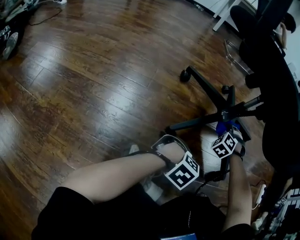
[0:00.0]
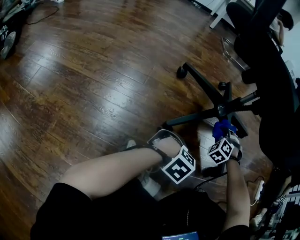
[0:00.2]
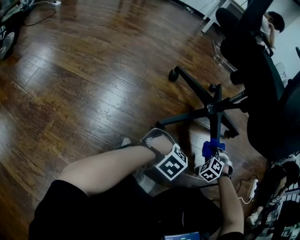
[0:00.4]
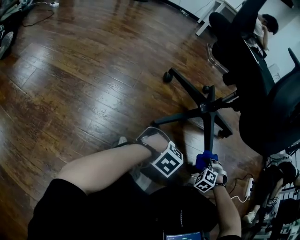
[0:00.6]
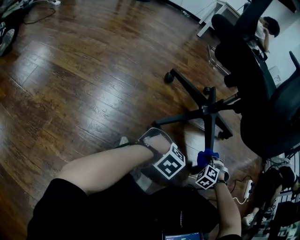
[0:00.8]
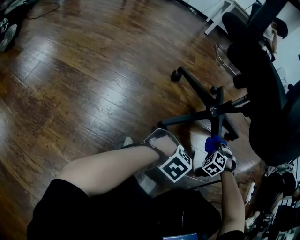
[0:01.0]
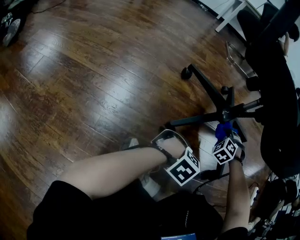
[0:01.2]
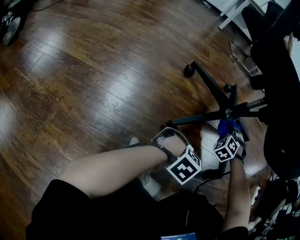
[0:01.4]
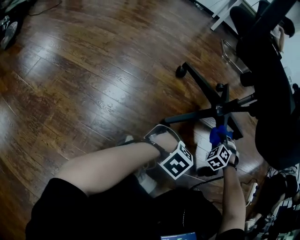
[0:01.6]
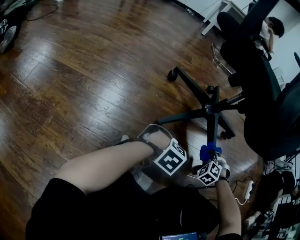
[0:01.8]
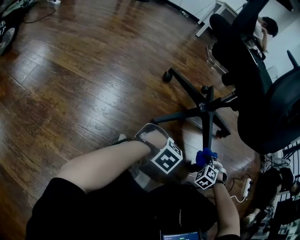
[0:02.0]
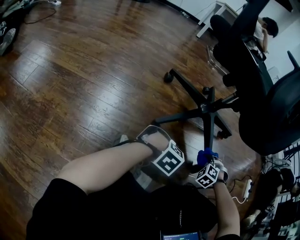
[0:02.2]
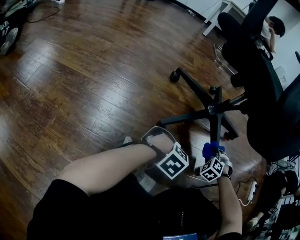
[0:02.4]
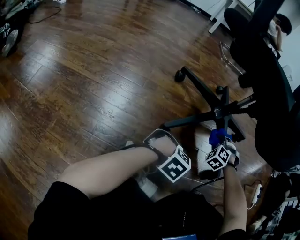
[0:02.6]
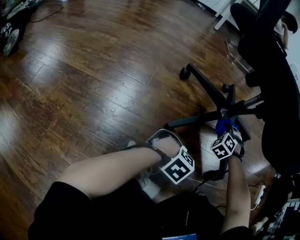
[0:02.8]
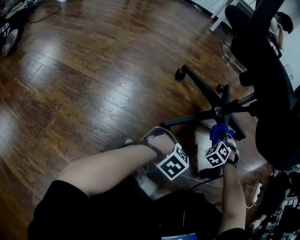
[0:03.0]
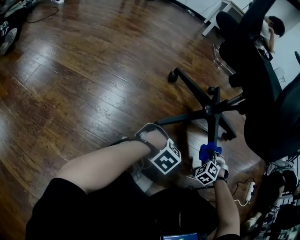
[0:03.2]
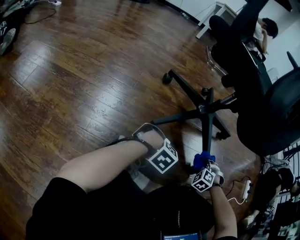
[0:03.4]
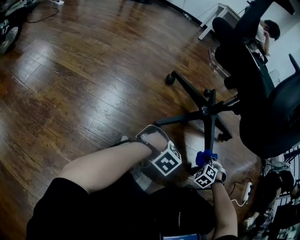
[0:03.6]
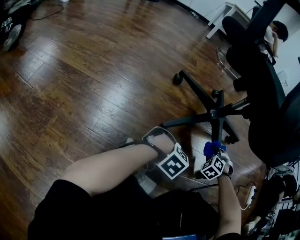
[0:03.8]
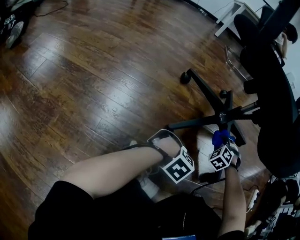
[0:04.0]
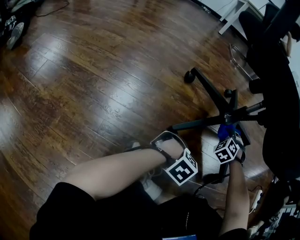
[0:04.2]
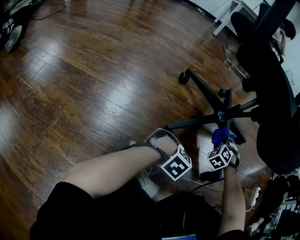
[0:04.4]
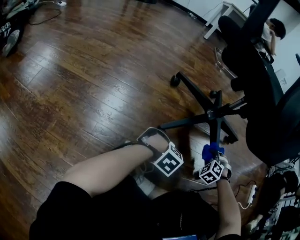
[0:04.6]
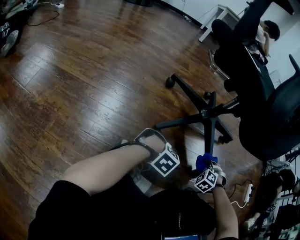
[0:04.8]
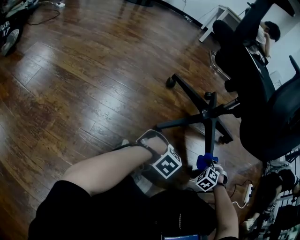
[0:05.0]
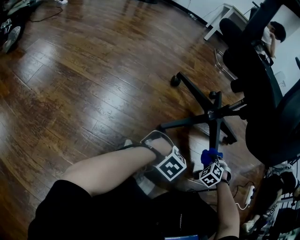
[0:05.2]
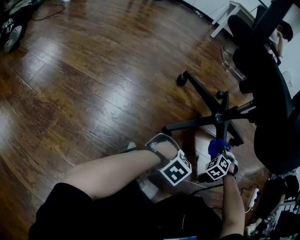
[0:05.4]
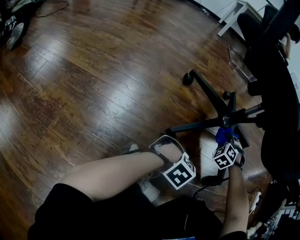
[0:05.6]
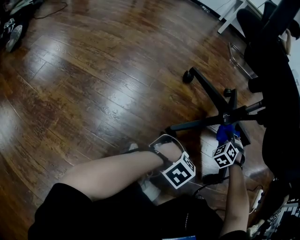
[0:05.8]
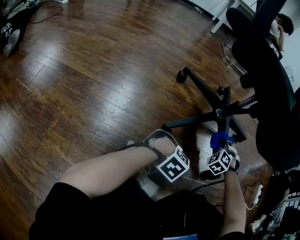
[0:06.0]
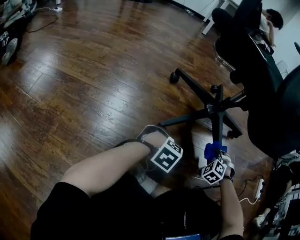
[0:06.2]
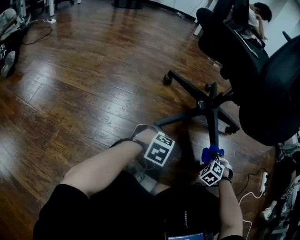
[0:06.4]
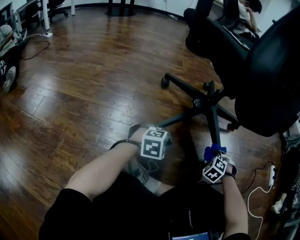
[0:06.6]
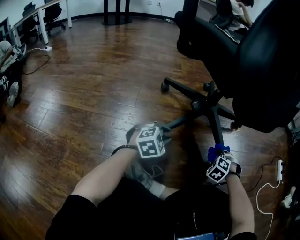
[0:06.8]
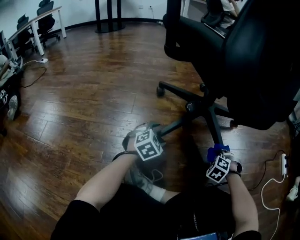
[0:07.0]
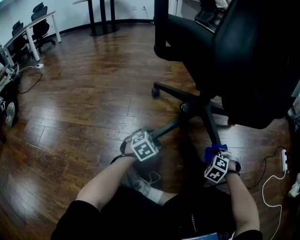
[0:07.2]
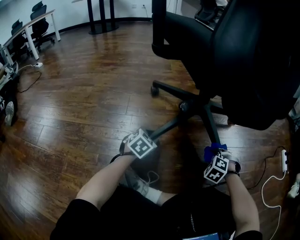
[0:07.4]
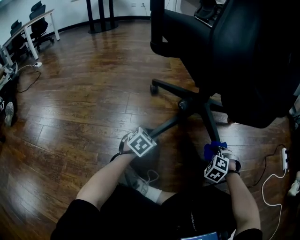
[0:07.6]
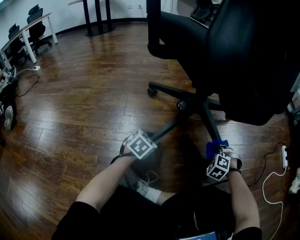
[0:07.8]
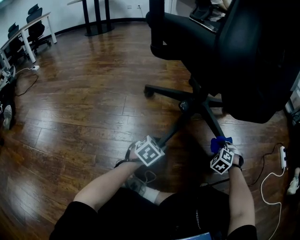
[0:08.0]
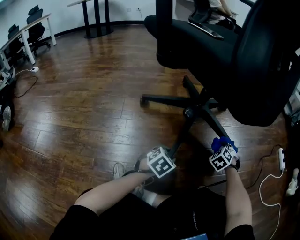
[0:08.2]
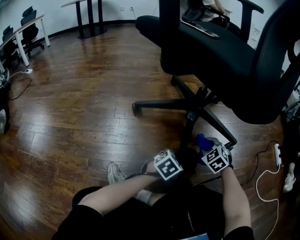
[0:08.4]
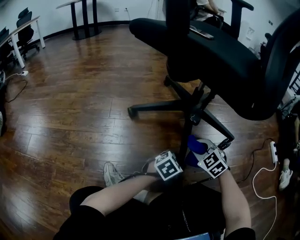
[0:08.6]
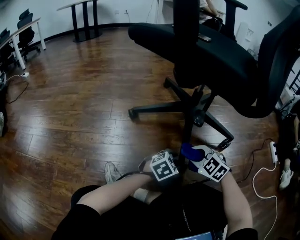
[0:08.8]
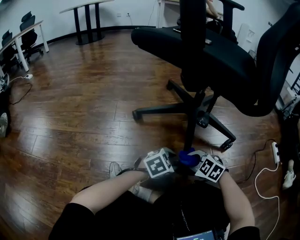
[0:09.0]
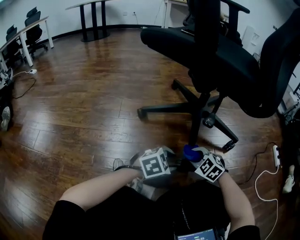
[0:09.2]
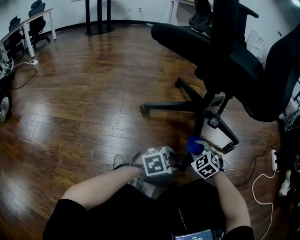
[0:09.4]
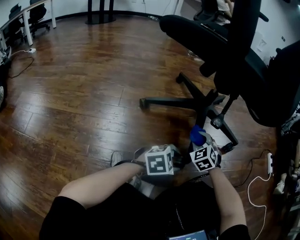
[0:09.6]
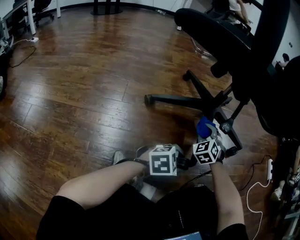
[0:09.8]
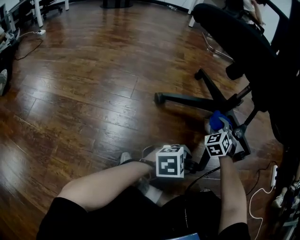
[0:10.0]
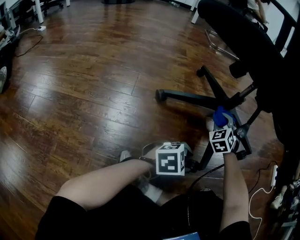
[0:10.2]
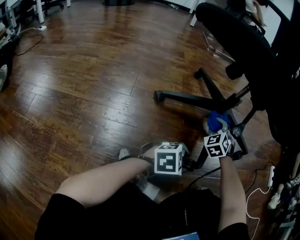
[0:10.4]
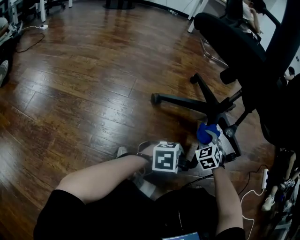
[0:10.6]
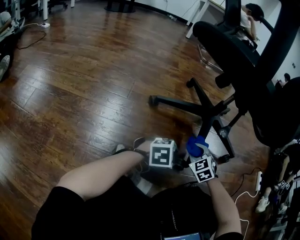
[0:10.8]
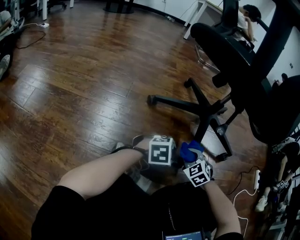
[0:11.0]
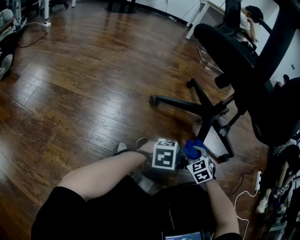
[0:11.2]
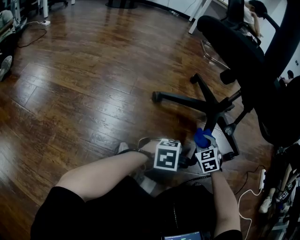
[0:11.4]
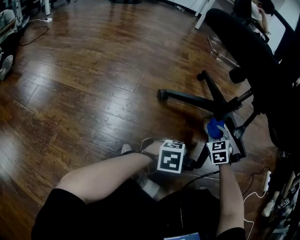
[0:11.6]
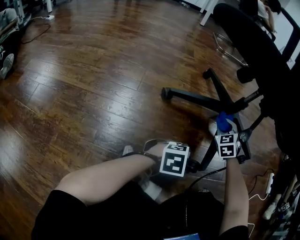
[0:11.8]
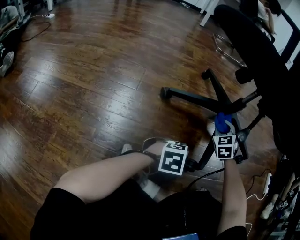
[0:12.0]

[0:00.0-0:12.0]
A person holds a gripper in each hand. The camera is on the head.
0:06.0 to 0:07.6: The left gripper changes place by approximately 20 cm, twists approximately 60 degrees counterclockwise, seen from behind, and opens.
0:07.6 to 0:09.0: The left gripper moves roughly 20 cm, and turns by approximately 30 degrees.

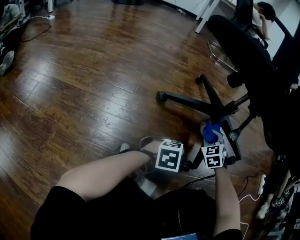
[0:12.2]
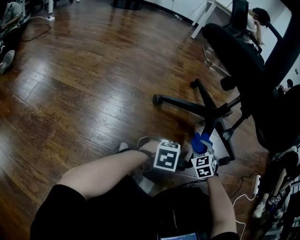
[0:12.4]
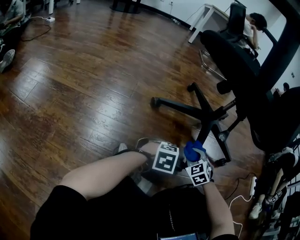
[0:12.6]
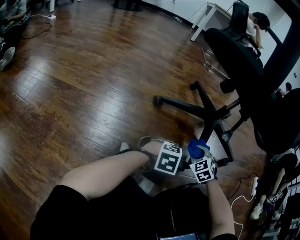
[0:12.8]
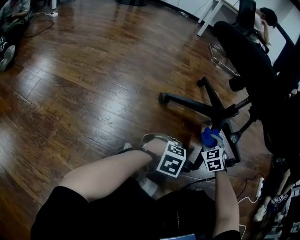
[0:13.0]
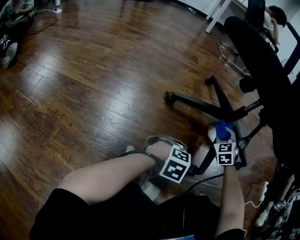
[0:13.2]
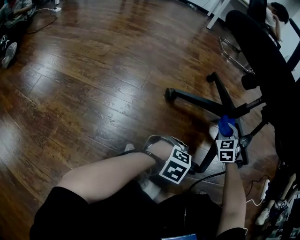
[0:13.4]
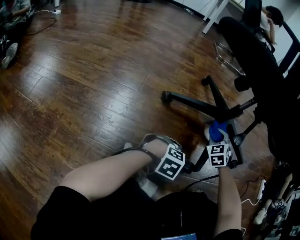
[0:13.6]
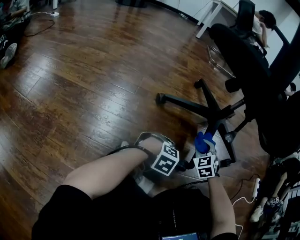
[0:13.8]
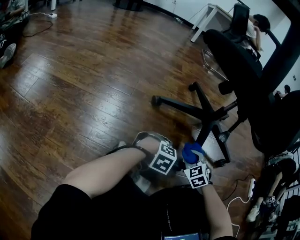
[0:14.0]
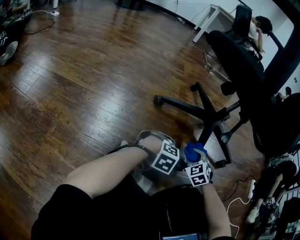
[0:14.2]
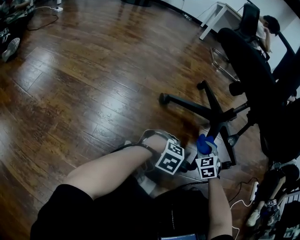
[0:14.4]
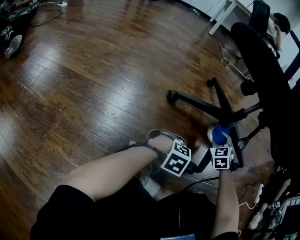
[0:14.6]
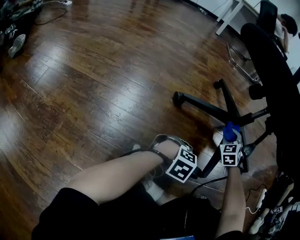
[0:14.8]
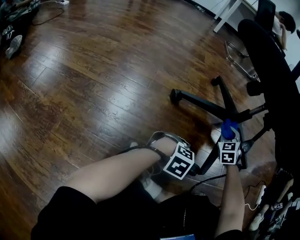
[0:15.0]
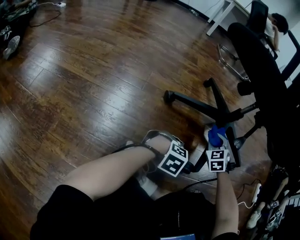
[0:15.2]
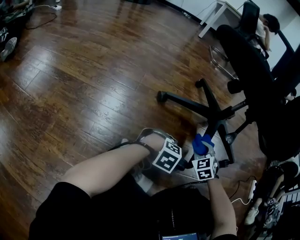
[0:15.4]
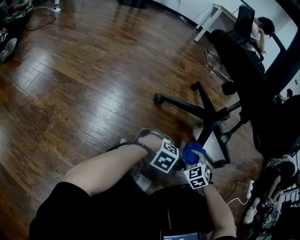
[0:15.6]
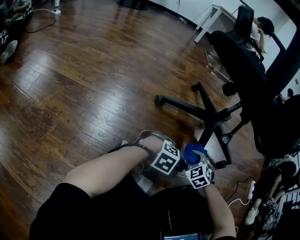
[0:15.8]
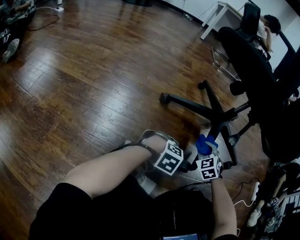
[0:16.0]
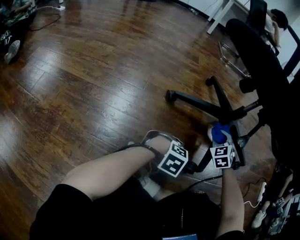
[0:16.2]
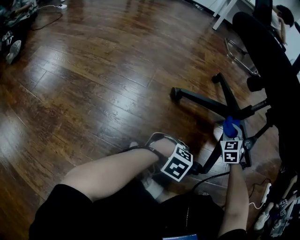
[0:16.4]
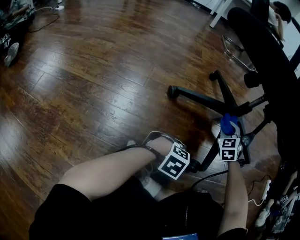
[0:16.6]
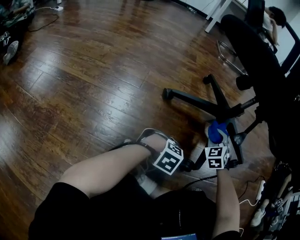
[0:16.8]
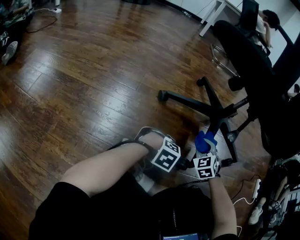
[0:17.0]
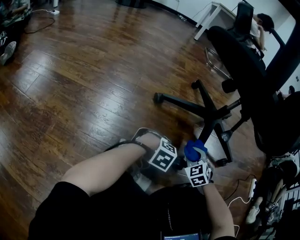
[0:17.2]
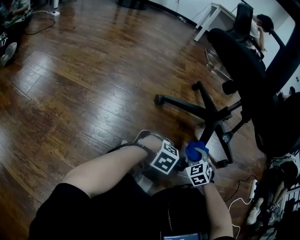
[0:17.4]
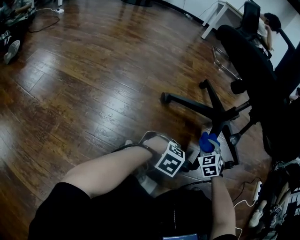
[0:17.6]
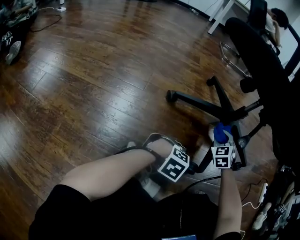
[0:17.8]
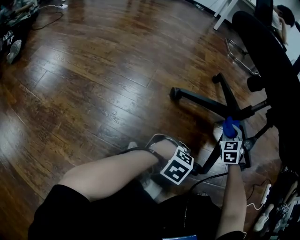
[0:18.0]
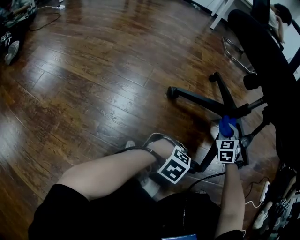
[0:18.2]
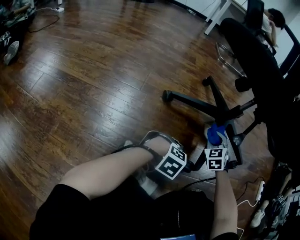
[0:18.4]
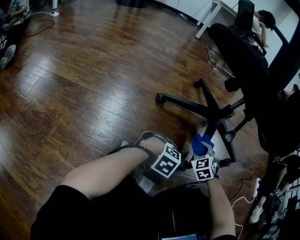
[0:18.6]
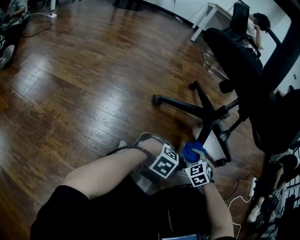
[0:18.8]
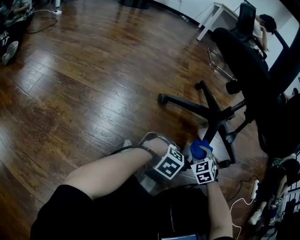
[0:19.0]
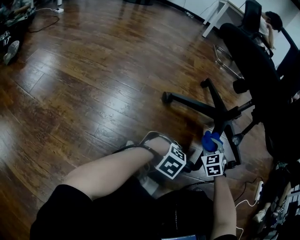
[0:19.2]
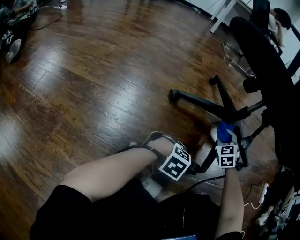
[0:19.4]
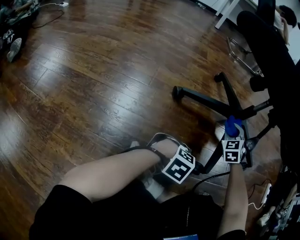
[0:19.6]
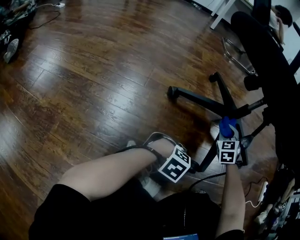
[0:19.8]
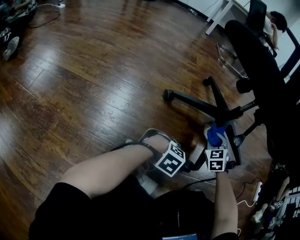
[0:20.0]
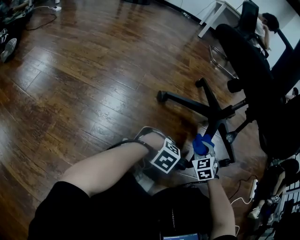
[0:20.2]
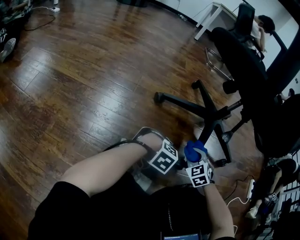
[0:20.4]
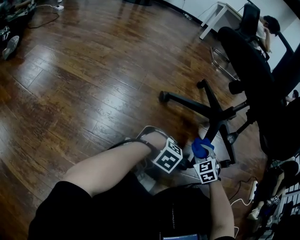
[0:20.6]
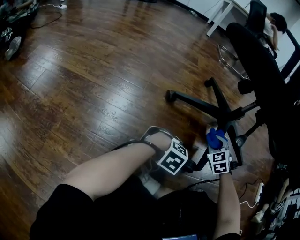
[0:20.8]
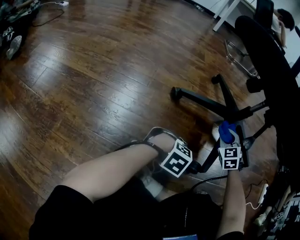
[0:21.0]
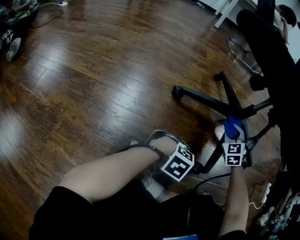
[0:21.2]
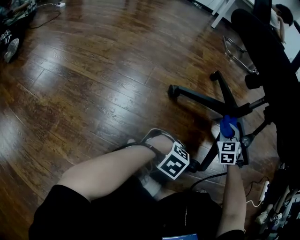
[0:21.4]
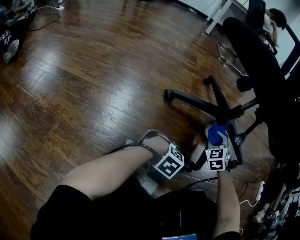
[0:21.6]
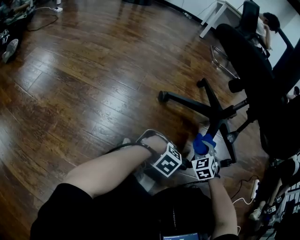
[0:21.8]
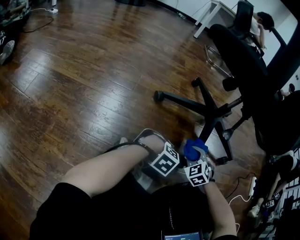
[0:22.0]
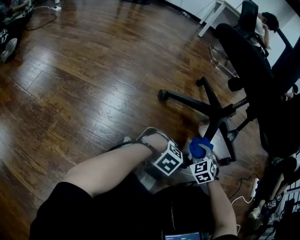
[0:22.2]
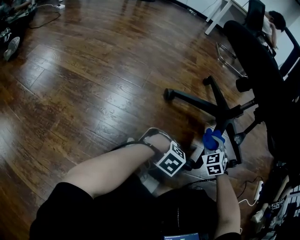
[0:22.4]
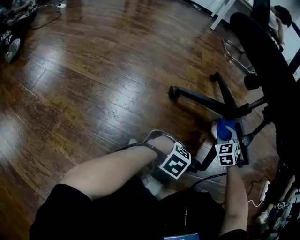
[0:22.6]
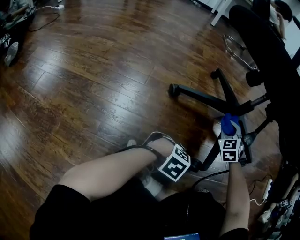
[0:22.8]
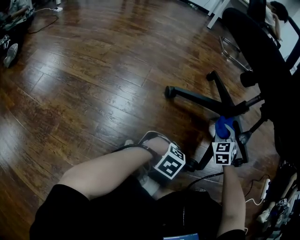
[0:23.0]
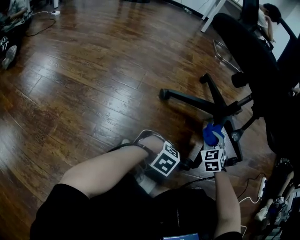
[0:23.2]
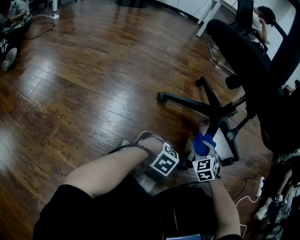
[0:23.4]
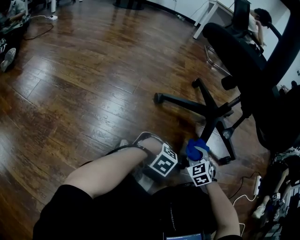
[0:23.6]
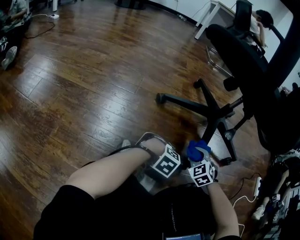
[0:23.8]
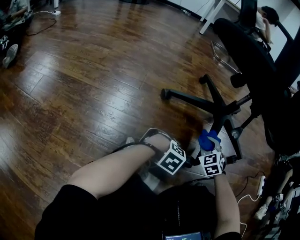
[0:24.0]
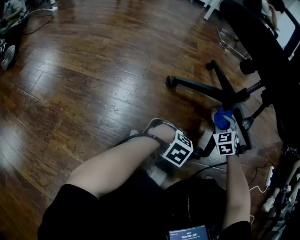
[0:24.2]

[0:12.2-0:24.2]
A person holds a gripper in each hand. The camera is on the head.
0:12.2 to 0:13.8: The left gripper shifts some 5 cm downward, and changes its angle by approximately 30 degrees.

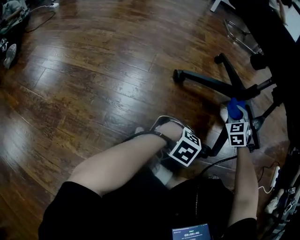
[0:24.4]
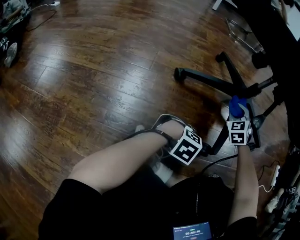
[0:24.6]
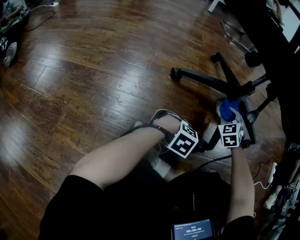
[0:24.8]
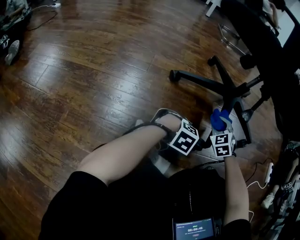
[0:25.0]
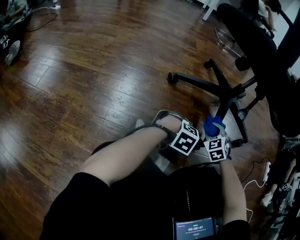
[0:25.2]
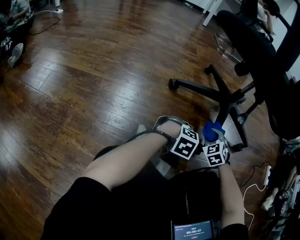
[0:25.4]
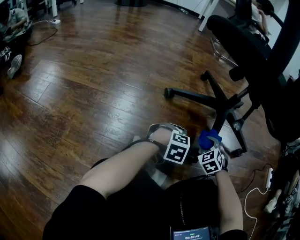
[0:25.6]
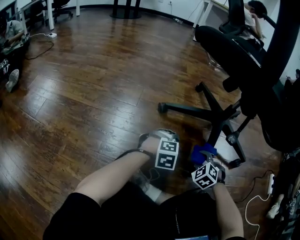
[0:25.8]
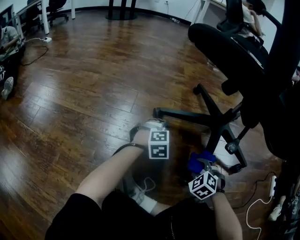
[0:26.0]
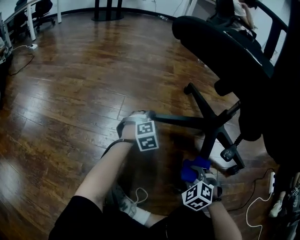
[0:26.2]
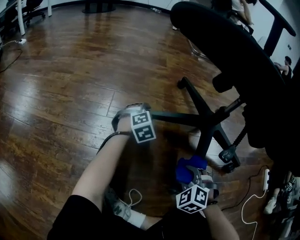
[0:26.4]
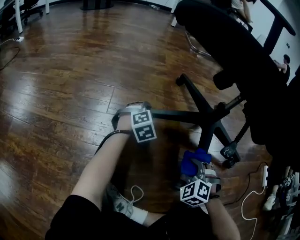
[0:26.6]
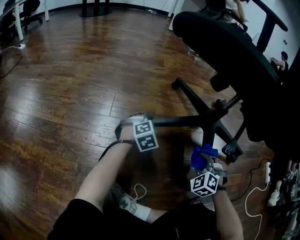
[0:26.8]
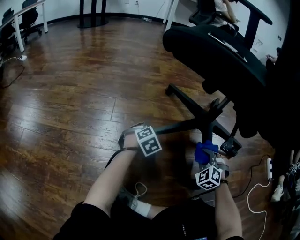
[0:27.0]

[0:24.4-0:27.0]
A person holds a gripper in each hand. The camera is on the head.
0:24.4 to 0:25.6: The left gripper changes place by approximately 5 cm.
0:25.6 to 0:27.0: The left gripper moves approximately 20 cm, and rotates roughly 30 degrees.
